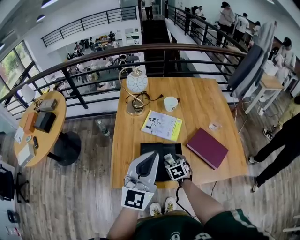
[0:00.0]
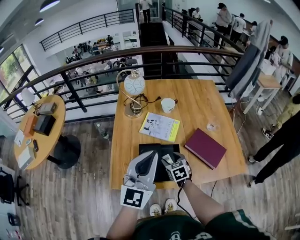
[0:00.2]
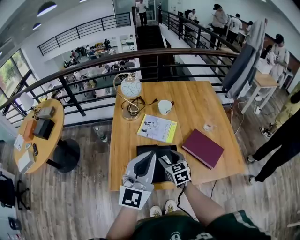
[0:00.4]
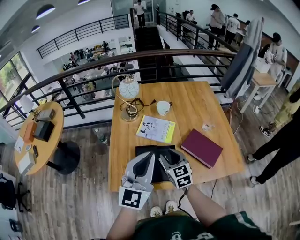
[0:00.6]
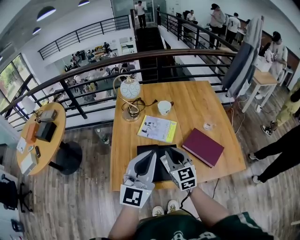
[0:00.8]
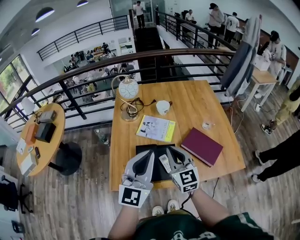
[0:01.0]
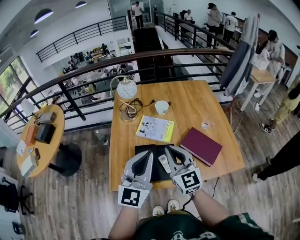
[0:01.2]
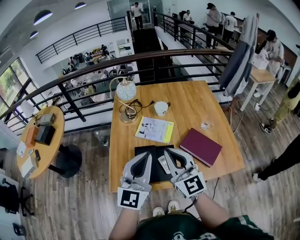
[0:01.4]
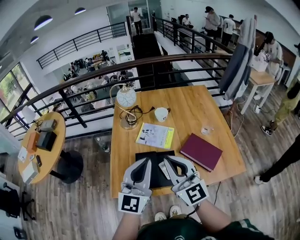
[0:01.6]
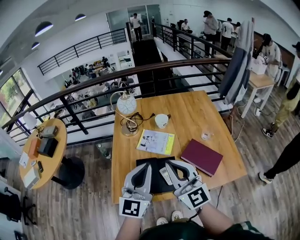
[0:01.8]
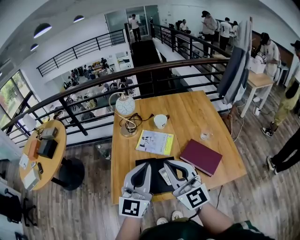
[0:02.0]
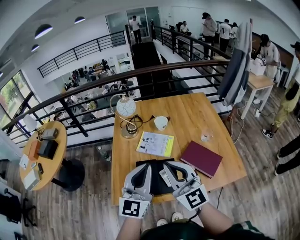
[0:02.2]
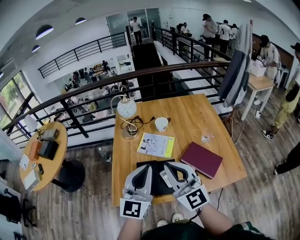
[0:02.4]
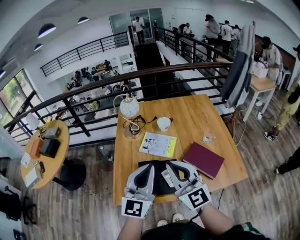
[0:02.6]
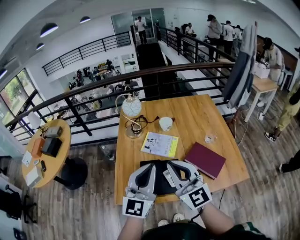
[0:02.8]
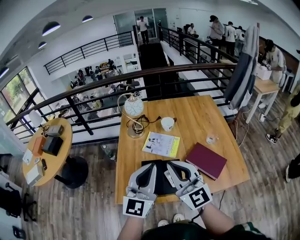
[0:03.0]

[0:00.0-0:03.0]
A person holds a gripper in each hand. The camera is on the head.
0:00.0 to 0:01.6: The right gripper shifts roughly 35 cm upward, tilts its fingers approximately 60 degrees upward, and closes.
0:01.6 to 0:03.0: There are only small adjustments of the grippers.

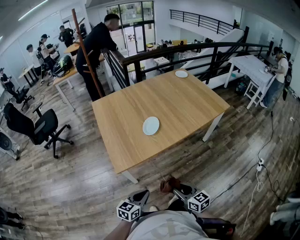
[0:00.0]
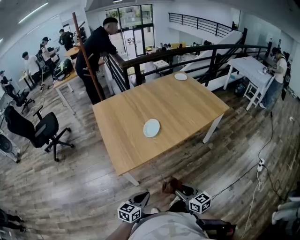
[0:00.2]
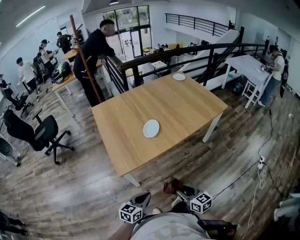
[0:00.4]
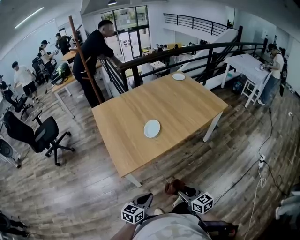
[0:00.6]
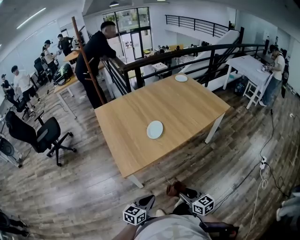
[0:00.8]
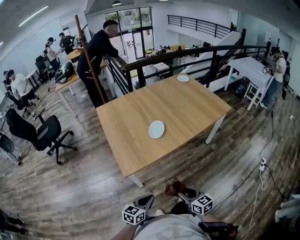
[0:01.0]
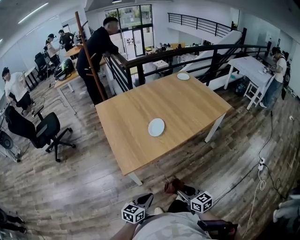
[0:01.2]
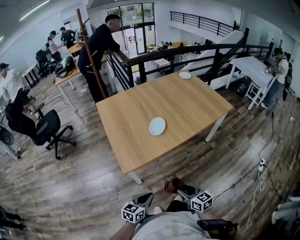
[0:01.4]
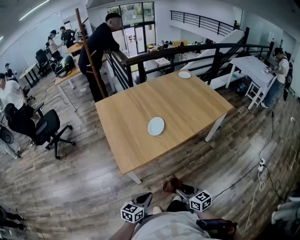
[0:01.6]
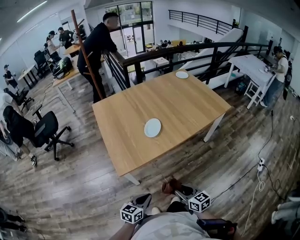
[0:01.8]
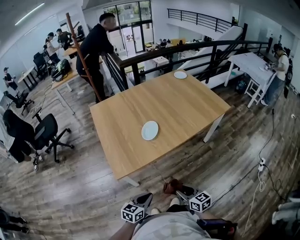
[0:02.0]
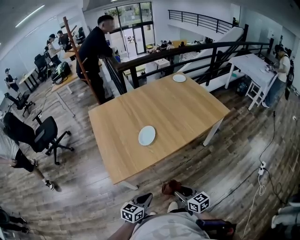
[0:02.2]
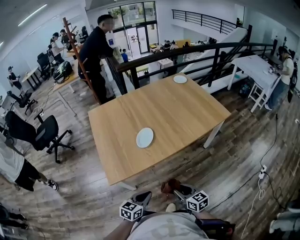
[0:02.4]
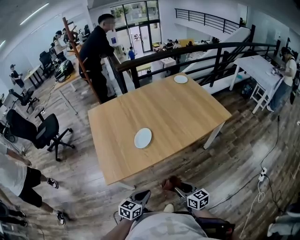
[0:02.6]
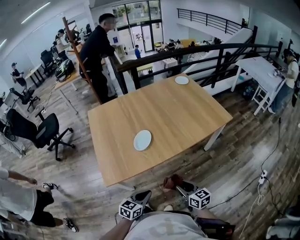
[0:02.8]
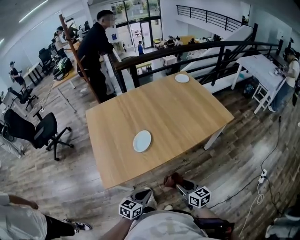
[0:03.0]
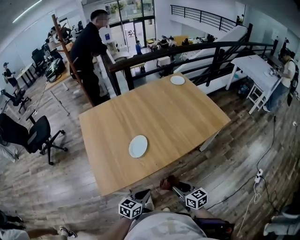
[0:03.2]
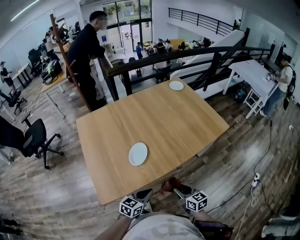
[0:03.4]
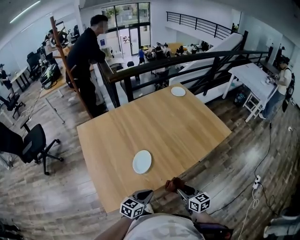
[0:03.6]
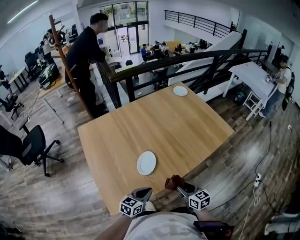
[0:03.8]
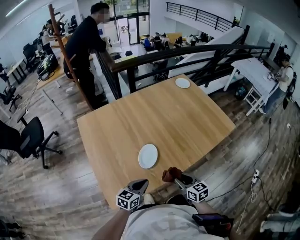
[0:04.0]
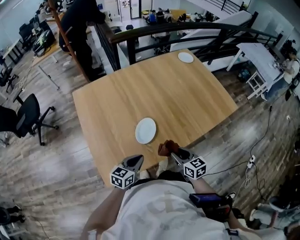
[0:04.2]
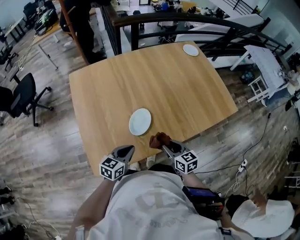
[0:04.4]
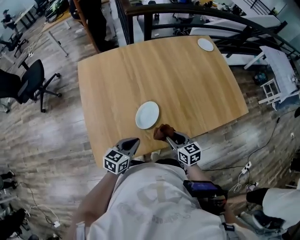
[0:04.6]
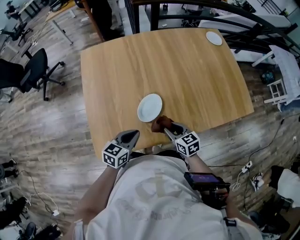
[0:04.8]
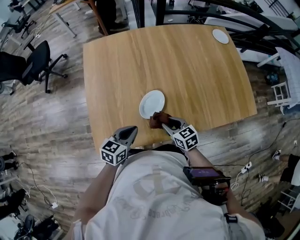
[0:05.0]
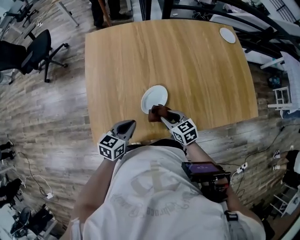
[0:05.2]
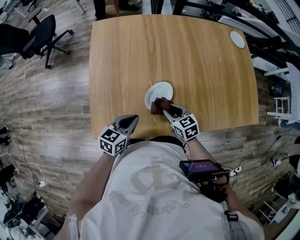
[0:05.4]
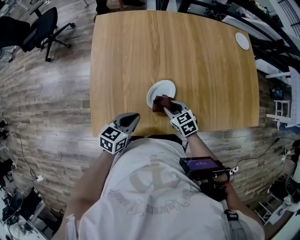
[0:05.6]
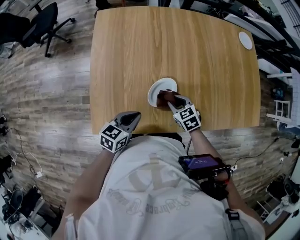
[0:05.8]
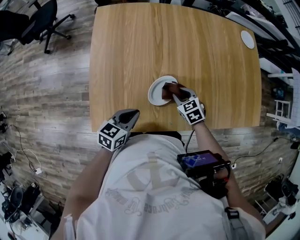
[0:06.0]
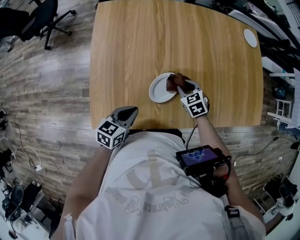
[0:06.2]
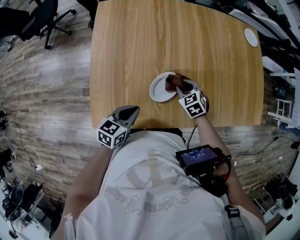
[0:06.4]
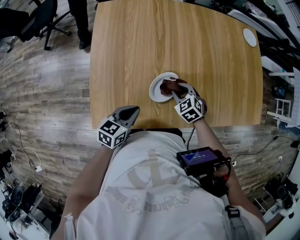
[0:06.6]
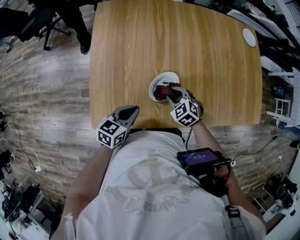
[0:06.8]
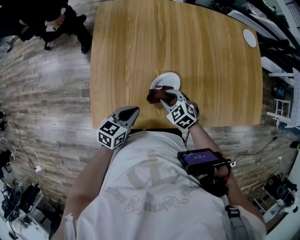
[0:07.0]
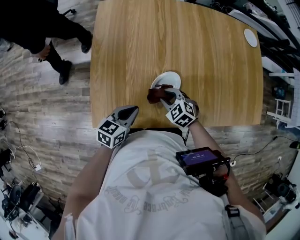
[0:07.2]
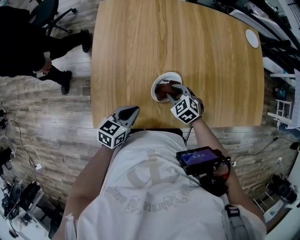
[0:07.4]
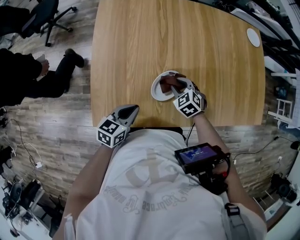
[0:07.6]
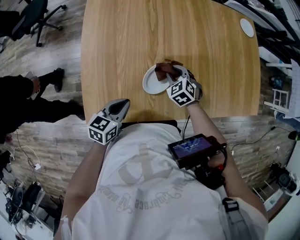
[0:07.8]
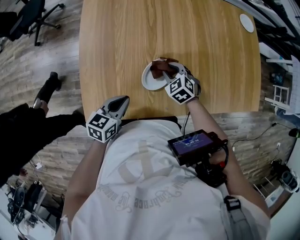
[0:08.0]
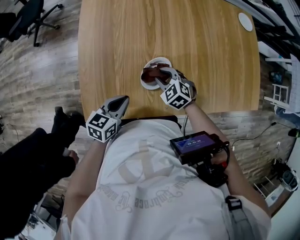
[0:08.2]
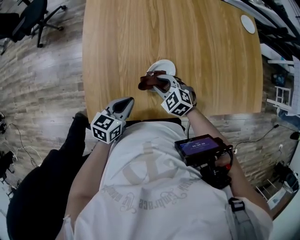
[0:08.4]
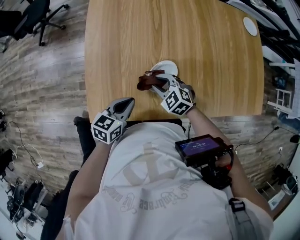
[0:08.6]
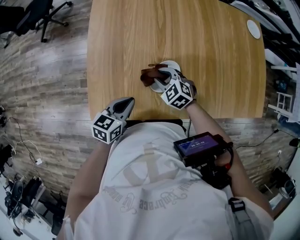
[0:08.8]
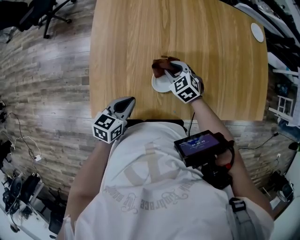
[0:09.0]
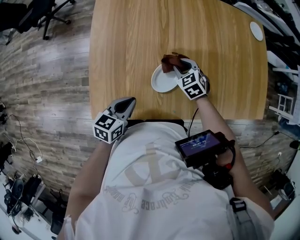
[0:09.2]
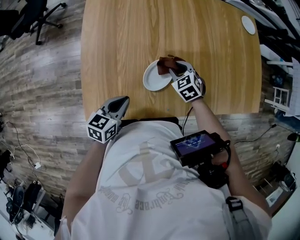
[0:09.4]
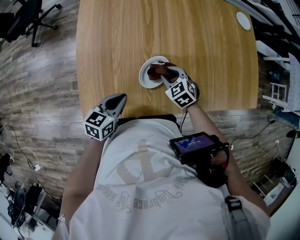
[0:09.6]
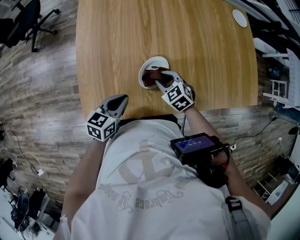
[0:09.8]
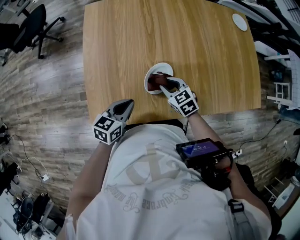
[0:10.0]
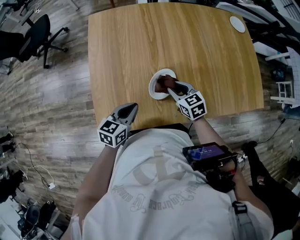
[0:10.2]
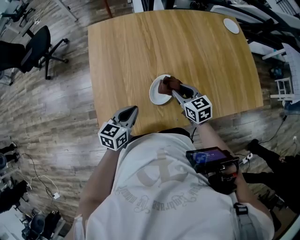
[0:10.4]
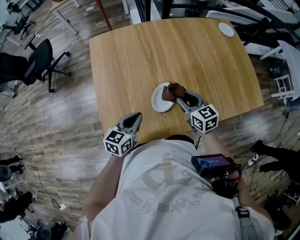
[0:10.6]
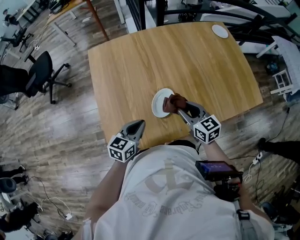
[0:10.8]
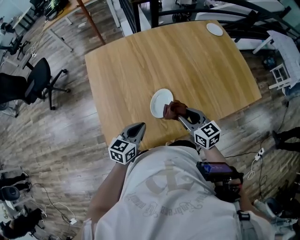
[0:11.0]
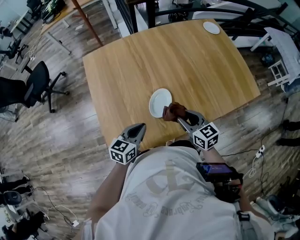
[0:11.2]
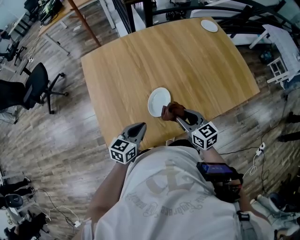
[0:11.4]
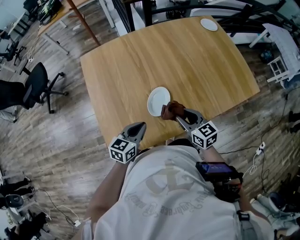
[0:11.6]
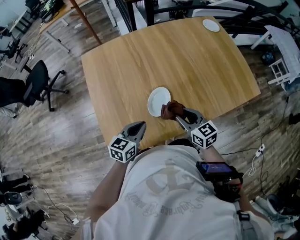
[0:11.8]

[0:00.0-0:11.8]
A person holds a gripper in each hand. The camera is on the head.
0:00.0 to 0:01.4: The grippers move only a little.
0:01.4 to 0:03.0: The grippers both shift forward and to the right by about 20 cm.
0:03.0 to 0:04.4: The two grippers go roughly 20 cm forward and to the left.
0:04.4 to 0:06.0: The right gripper travels forward and downward by some 20 cm, and changes its angle by roughly 40 degrees. The left gripper moves roughly 5 cm.
0:06.0 to 0:07.4: The right gripper shifts some 5 cm to the left.
0:07.4 to 0:08.8: The right gripper is displaced to the left by roughly 5 cm.
0:08.8 to 0:10.4: The right gripper travels to the right and upward by roughly 10 cm, and turns by some 40 degrees.
0:10.4 to 0:11.8: The right gripper travels backward by roughly 10 cm. The left gripper is displaced to the right by roughly 5 cm.

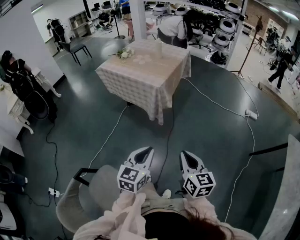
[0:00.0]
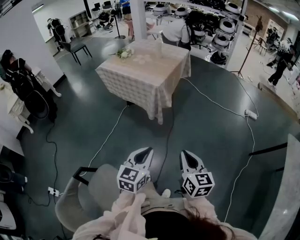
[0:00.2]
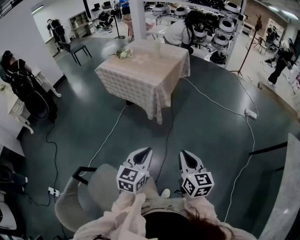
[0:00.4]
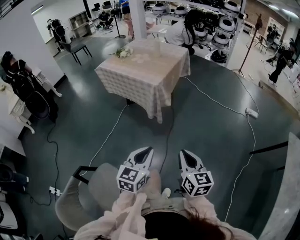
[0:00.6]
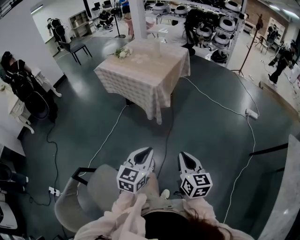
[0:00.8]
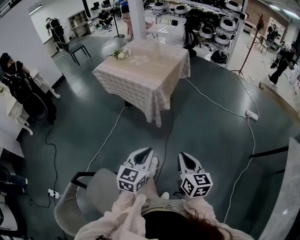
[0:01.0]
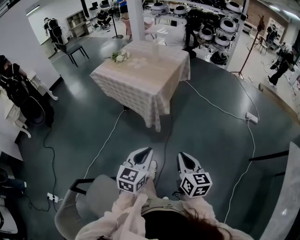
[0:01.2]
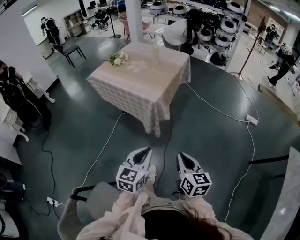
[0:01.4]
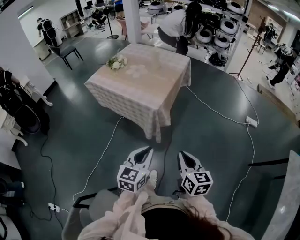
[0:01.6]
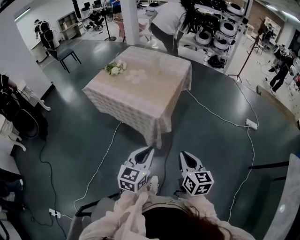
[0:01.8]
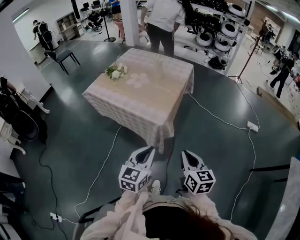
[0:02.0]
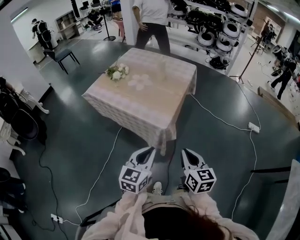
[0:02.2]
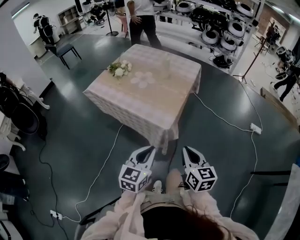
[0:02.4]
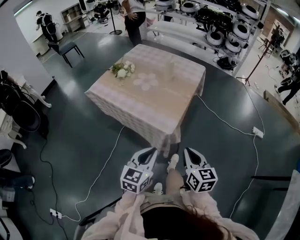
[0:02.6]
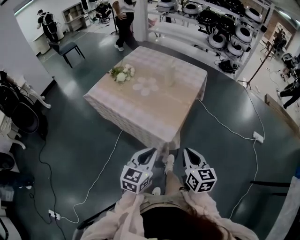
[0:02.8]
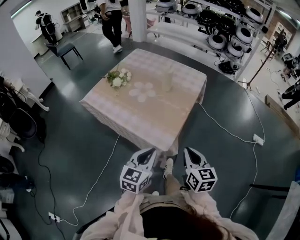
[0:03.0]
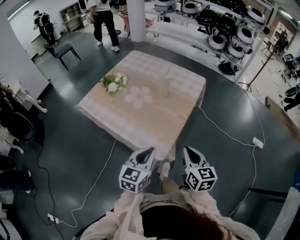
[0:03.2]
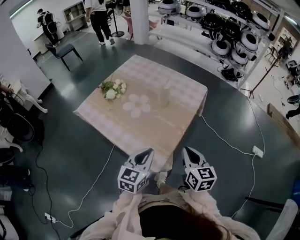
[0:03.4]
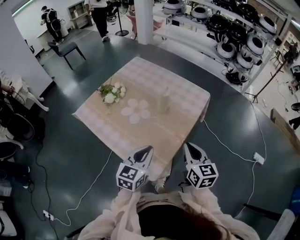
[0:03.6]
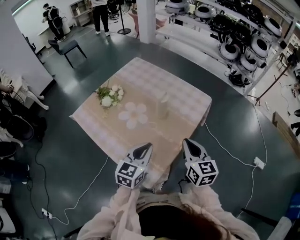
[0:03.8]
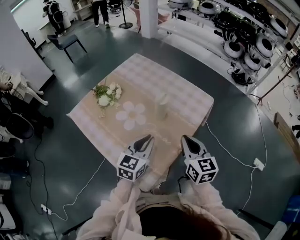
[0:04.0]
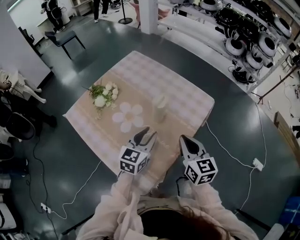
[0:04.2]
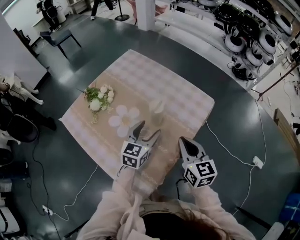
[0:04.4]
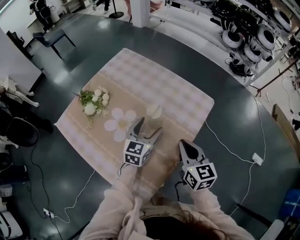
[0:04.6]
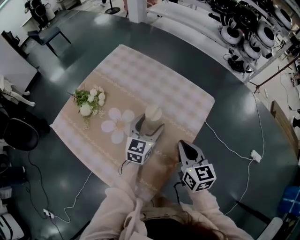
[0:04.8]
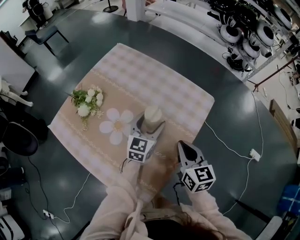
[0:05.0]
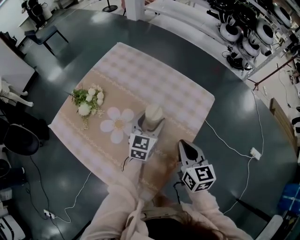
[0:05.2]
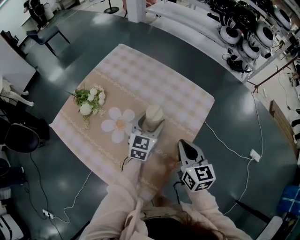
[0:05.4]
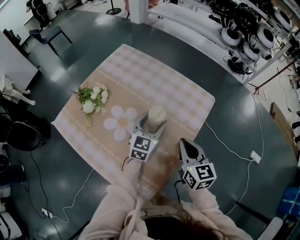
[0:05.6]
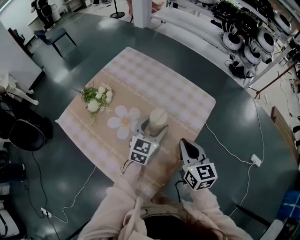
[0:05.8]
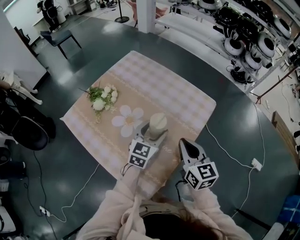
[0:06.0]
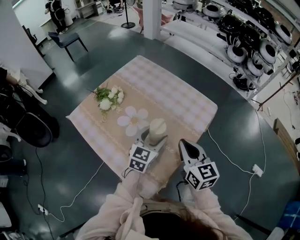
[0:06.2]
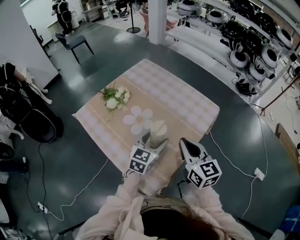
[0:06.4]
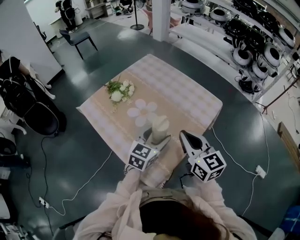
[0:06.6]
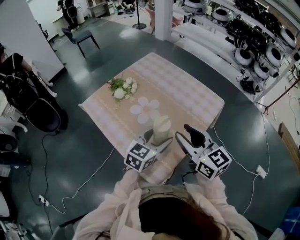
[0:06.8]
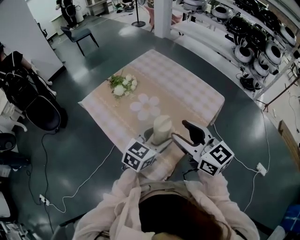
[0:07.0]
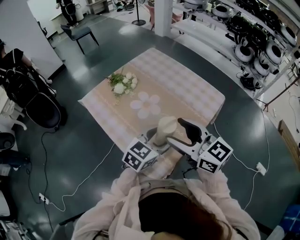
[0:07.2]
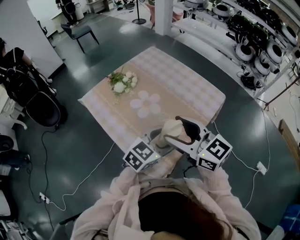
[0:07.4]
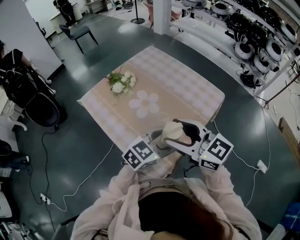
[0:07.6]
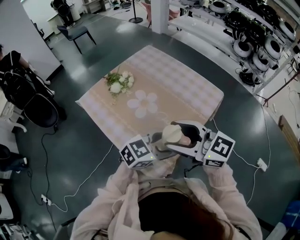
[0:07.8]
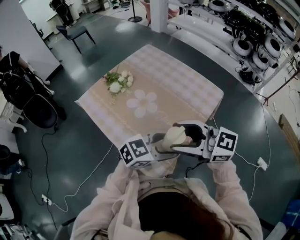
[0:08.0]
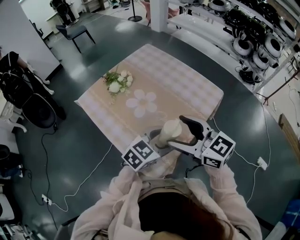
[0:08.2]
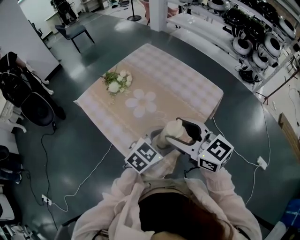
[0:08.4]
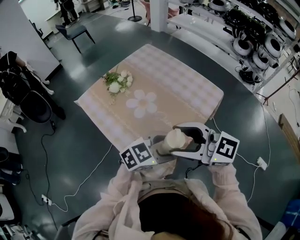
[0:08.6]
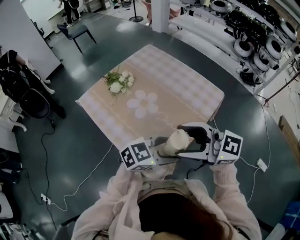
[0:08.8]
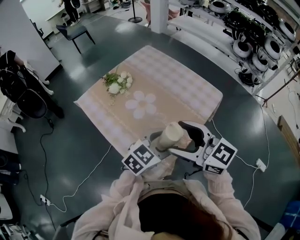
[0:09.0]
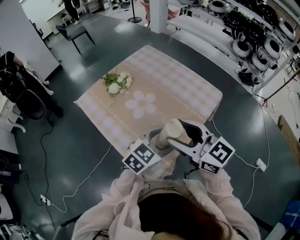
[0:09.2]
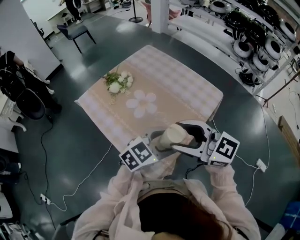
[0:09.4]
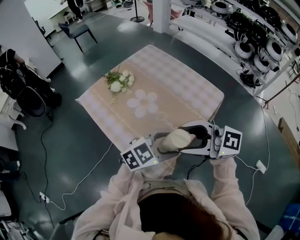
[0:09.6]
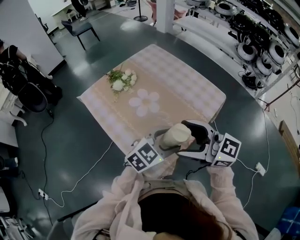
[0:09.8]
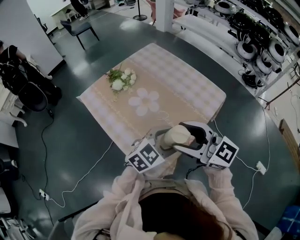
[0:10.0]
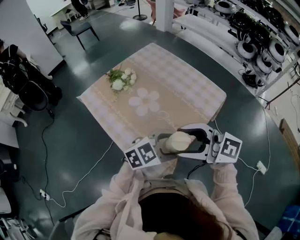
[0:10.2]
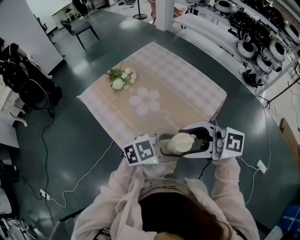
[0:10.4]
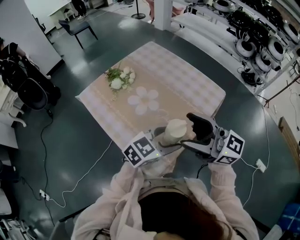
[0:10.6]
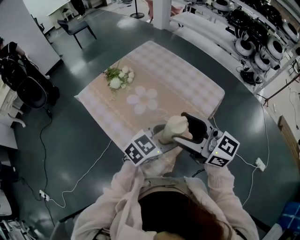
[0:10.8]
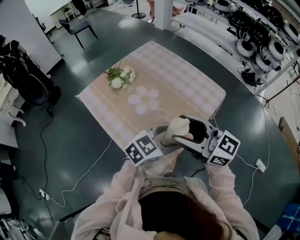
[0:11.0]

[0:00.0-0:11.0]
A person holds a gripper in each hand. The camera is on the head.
0:00.0 to 0:01.6: Both grippers travel together forward, roughly 25 cm.
0:01.6 to 0:03.2: The grippers both shift forward by roughly 40 cm.
0:03.2 to 0:04.8: The two grippers go about 40 cm forward. The left gripper opens up.
0:04.8 to 0:06.2: The left gripper is displaced backward and upward by some 10 cm, while the right gripper moves upward and backward, some 10 cm.
0:06.2 to 0:07.8: The left gripper moves about 15 cm, and rotates roughly 40 degrees, while the right gripper moves some 15 cm, turns by roughly 50 degrees, and opens.
0:07.8 to 0:09.4: The grippers move only a little.
